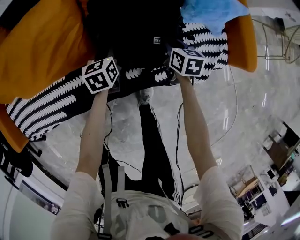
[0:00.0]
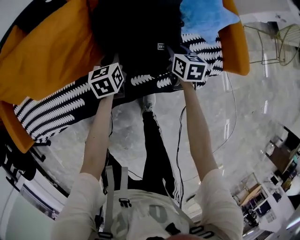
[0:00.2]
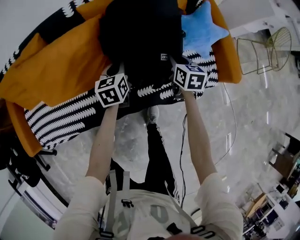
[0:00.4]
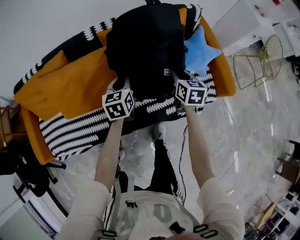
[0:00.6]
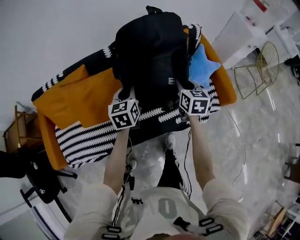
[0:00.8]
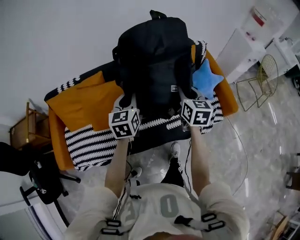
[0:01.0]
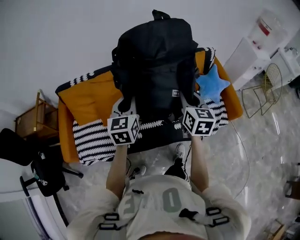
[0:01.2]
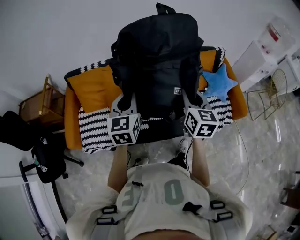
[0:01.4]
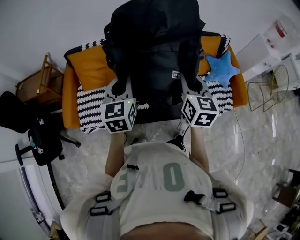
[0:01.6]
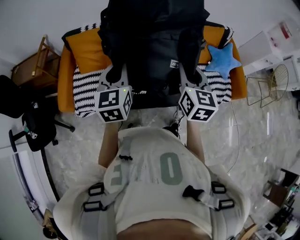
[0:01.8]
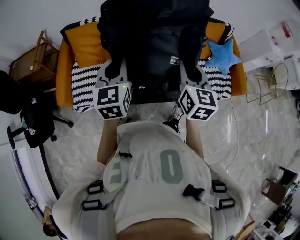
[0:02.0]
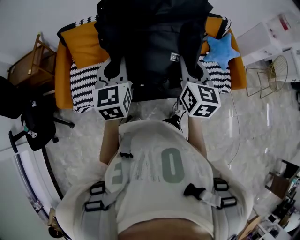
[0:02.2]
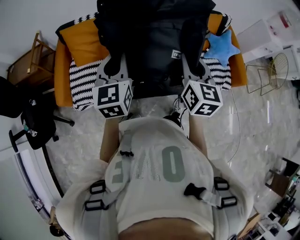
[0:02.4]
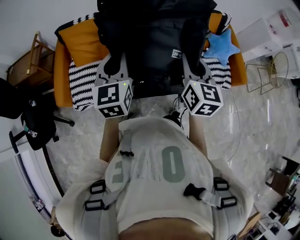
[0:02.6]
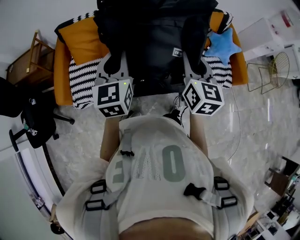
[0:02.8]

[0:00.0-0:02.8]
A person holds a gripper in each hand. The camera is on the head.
0:00.0 to 0:01.4: The left gripper is displaced upward by about 60 cm, and changes its angle by some 30 degrees, while the right gripper goes about 60 cm upward and to the left, and swivels some 30 degrees.
0:01.4 to 0:02.8: Both grippers travel together to the left and backward, some 15 cm.

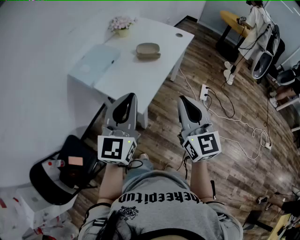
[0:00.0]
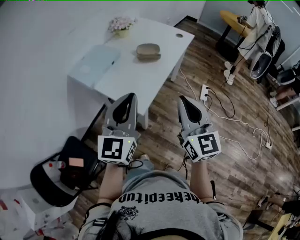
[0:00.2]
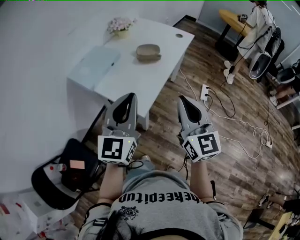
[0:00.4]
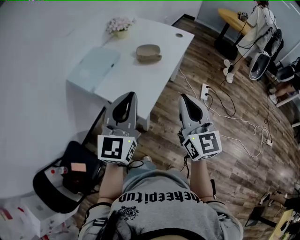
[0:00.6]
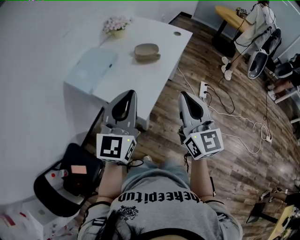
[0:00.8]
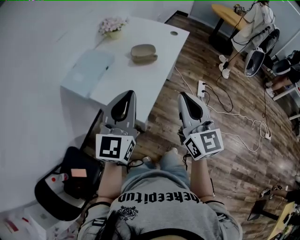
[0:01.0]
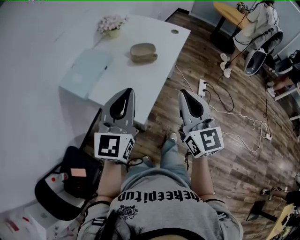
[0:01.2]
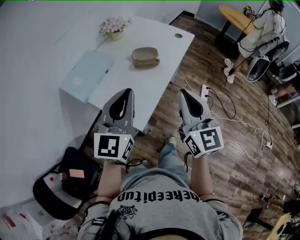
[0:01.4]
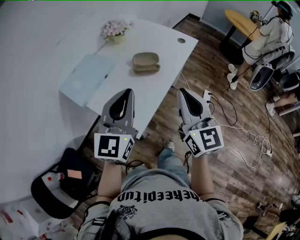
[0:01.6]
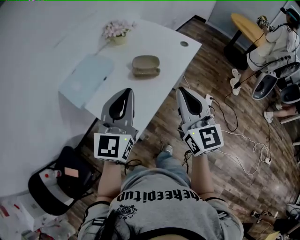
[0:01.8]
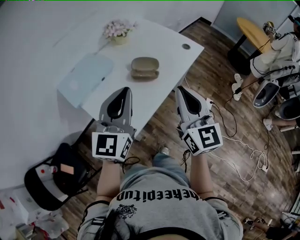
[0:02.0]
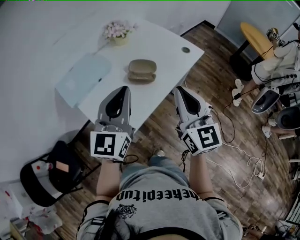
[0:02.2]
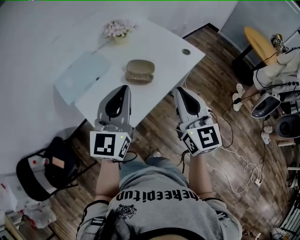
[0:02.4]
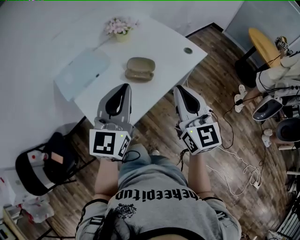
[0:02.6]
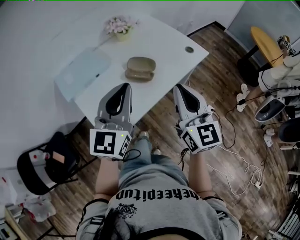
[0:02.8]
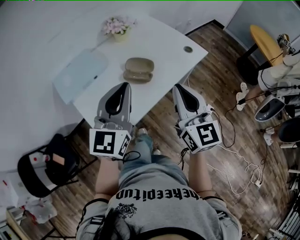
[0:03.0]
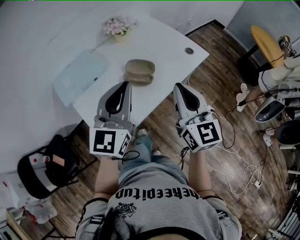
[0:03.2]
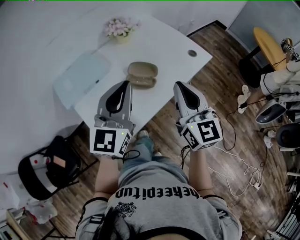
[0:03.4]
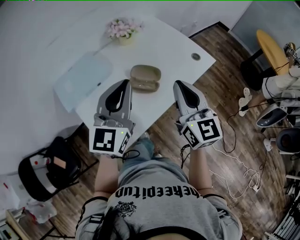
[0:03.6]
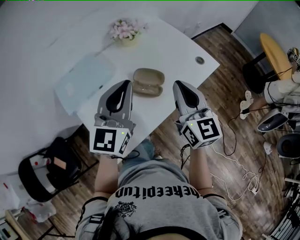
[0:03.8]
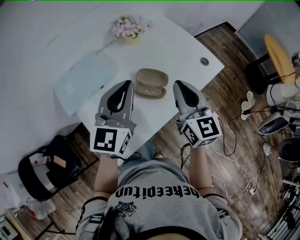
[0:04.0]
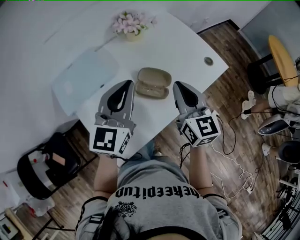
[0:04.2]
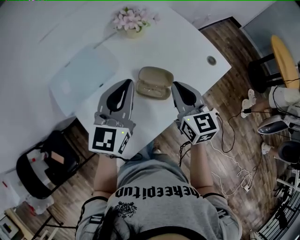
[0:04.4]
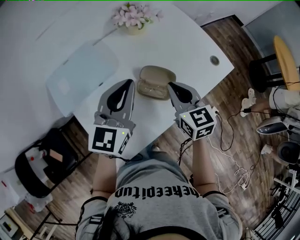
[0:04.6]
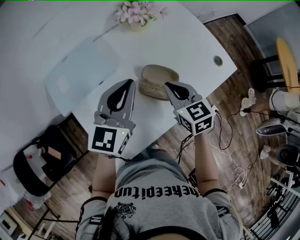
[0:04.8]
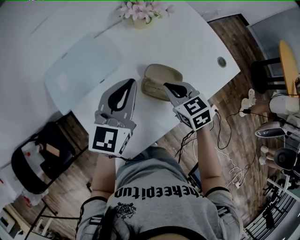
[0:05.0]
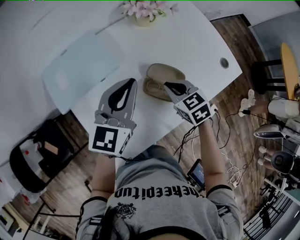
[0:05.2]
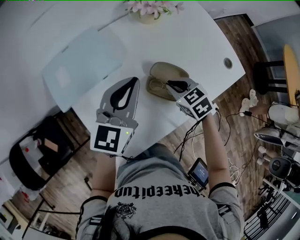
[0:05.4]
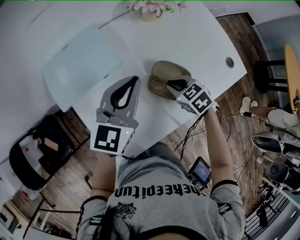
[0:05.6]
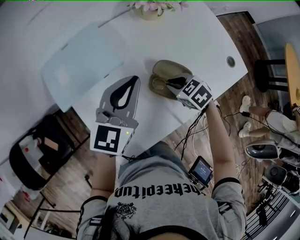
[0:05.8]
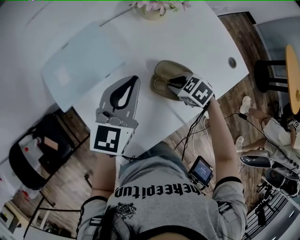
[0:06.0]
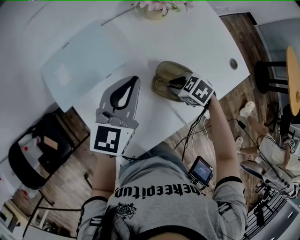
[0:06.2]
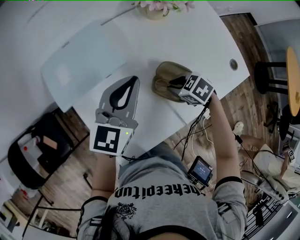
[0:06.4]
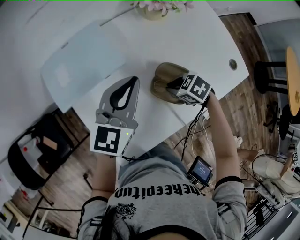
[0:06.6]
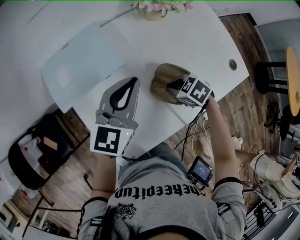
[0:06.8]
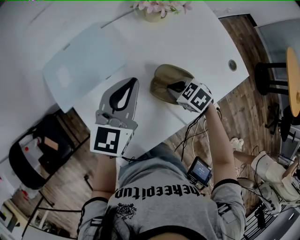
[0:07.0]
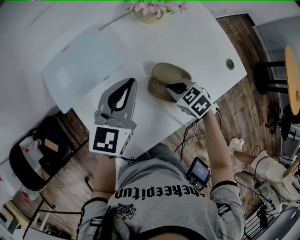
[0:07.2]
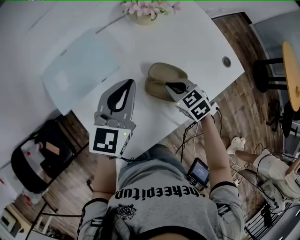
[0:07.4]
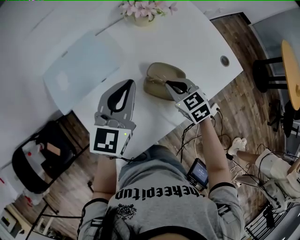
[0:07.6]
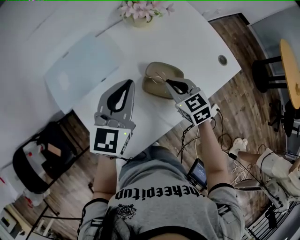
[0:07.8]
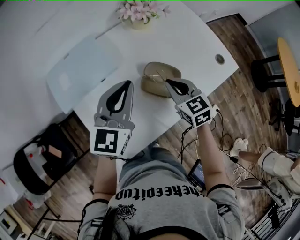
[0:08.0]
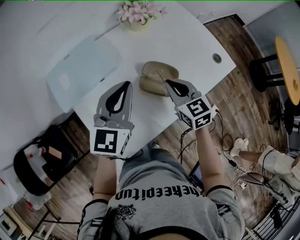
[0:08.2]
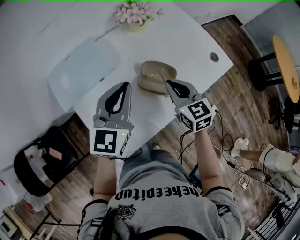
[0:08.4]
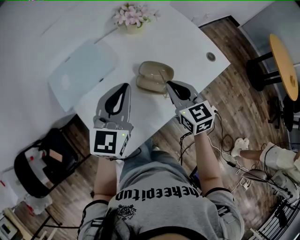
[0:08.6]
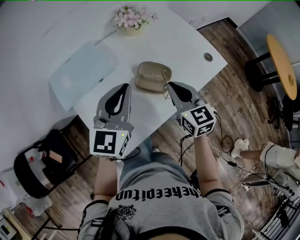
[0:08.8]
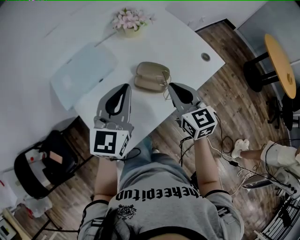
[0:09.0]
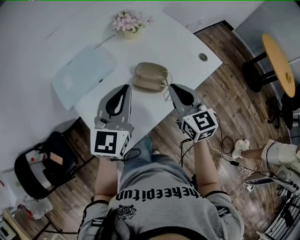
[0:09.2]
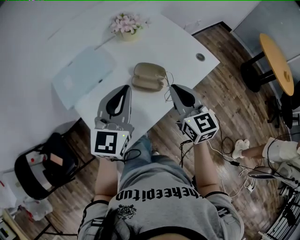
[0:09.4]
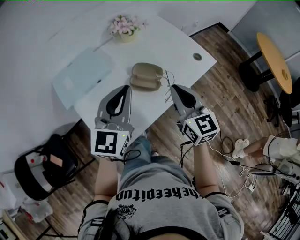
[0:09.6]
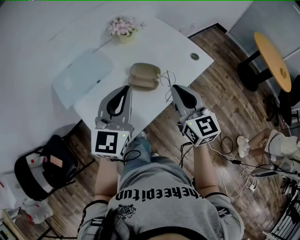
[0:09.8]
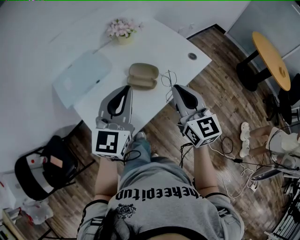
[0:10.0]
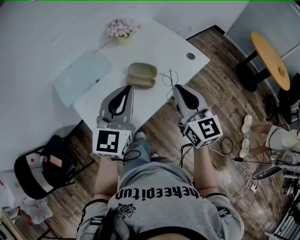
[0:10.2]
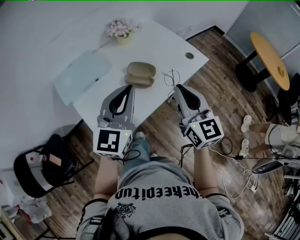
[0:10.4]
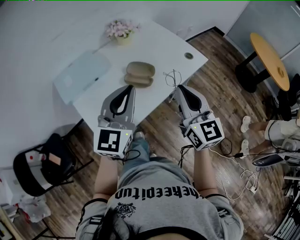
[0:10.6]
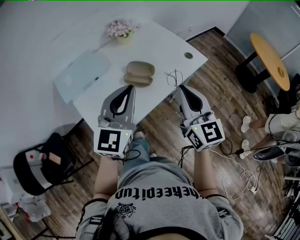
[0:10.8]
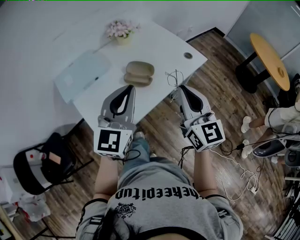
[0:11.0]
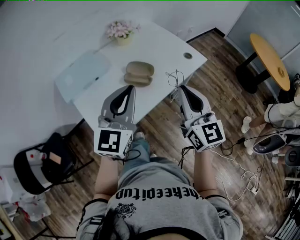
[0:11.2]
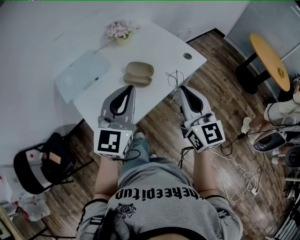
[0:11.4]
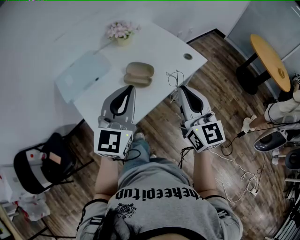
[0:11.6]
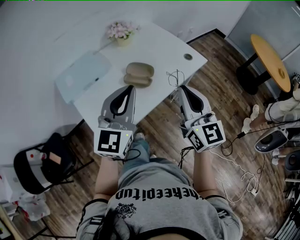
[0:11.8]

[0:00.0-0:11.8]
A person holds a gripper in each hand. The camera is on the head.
0:00.0 to 0:01.4: Both grippers move forward, some 10 cm.
0:01.4 to 0:03.0: The left gripper travels to the right and forward by about 15 cm; the right gripper moves forward and to the right, about 20 cm.
0:03.0 to 0:04.4: The right gripper is displaced forward and downward by about 20 cm. The left gripper is displaced forward by approximately 15 cm.
0:04.4 to 0:06.0: The right gripper is displaced downward by approximately 20 cm, and angles its fingers downward, by approximately 50 degrees. Meanwhile the left gripper goes some 5 cm downward.
0:06.0 to 0:07.4: The grippers stay close to where they were, moving slightly.
0:07.4 to 0:08.8: The left gripper travels backward and upward by about 10 cm. The right gripper heads upward and backward, covering about 15 cm, and tilts its fingers roughly 30 degrees upward.
0:08.8 to 0:10.4: The left gripper travels backward and to the right by roughly 15 cm, while the right gripper shifts roughly 20 cm backward, upward and to the right.
0:10.4 to 0:11.8: The grippers stay close to where they were, moving slightly.

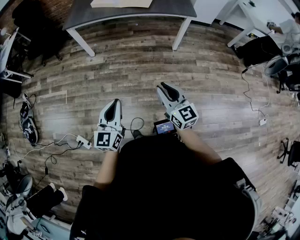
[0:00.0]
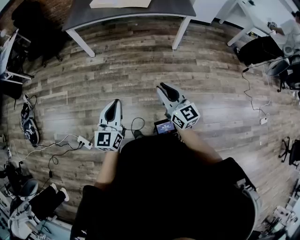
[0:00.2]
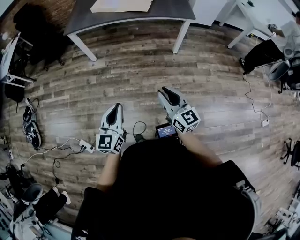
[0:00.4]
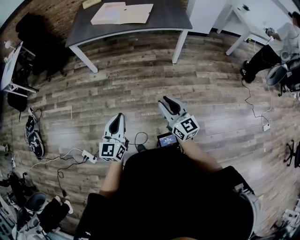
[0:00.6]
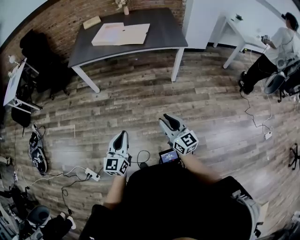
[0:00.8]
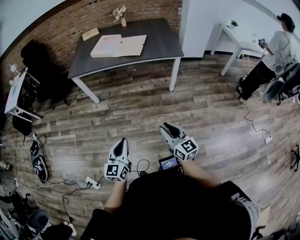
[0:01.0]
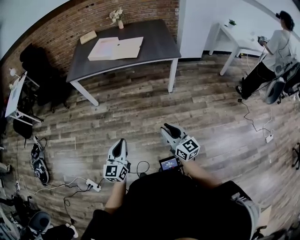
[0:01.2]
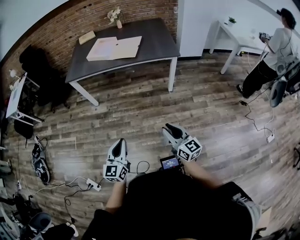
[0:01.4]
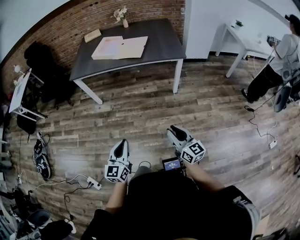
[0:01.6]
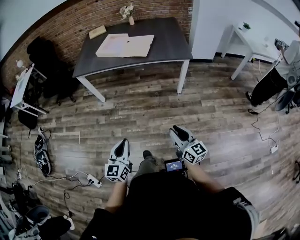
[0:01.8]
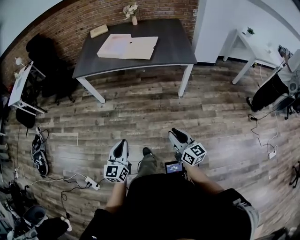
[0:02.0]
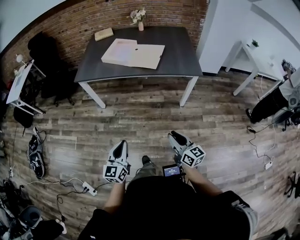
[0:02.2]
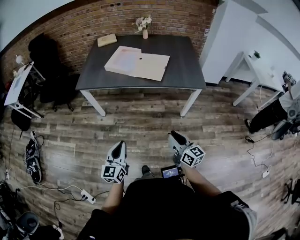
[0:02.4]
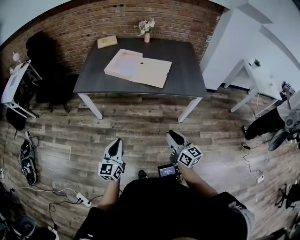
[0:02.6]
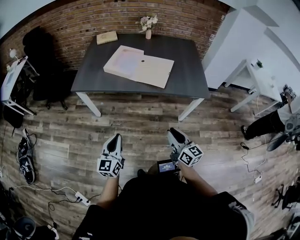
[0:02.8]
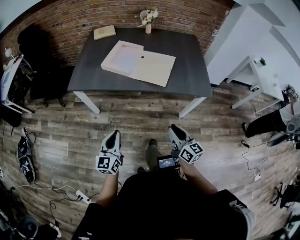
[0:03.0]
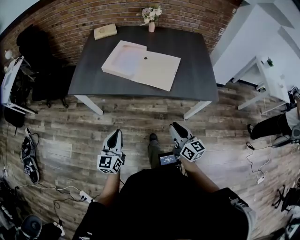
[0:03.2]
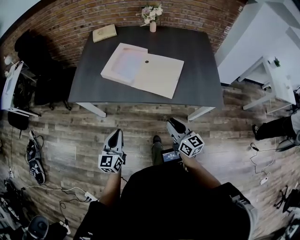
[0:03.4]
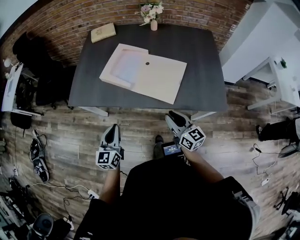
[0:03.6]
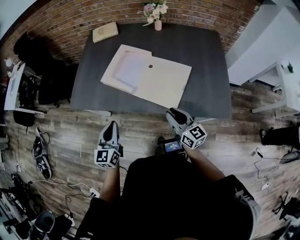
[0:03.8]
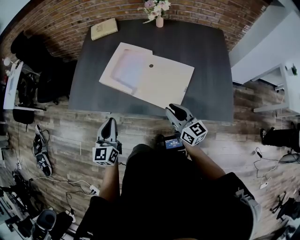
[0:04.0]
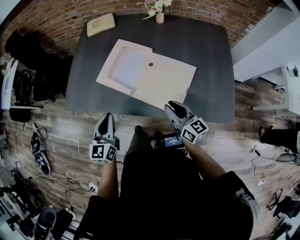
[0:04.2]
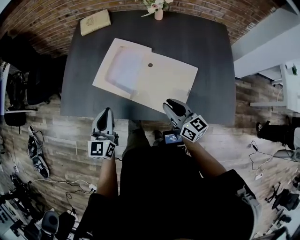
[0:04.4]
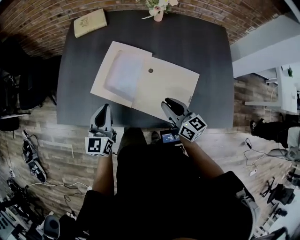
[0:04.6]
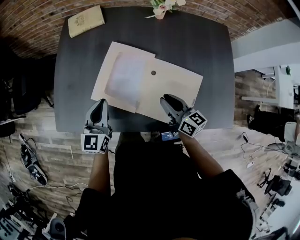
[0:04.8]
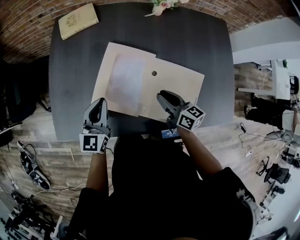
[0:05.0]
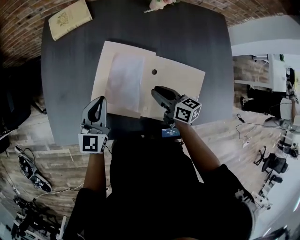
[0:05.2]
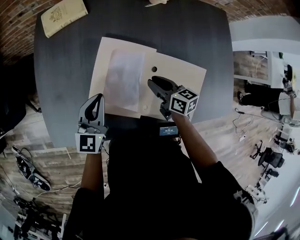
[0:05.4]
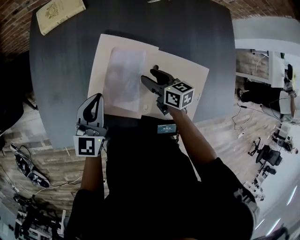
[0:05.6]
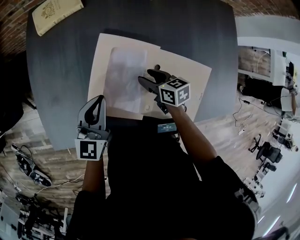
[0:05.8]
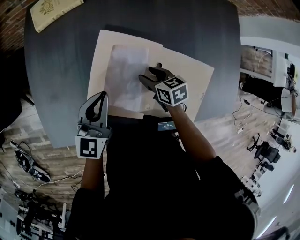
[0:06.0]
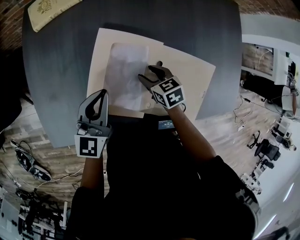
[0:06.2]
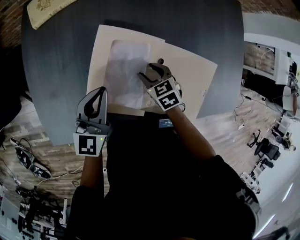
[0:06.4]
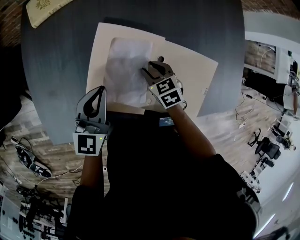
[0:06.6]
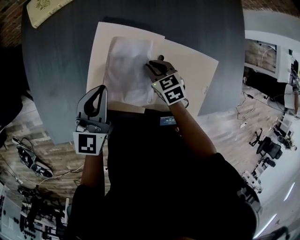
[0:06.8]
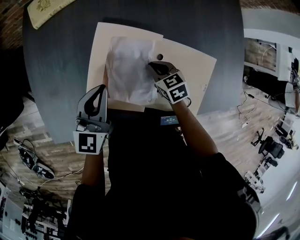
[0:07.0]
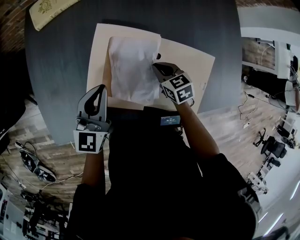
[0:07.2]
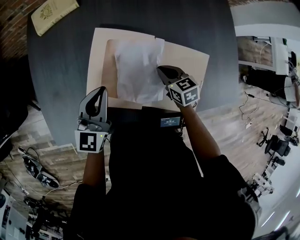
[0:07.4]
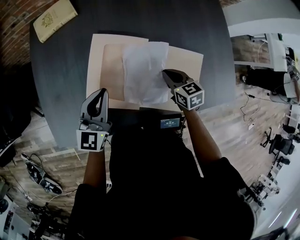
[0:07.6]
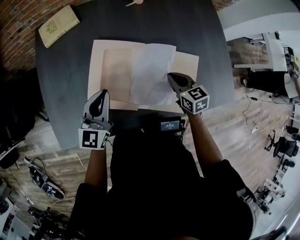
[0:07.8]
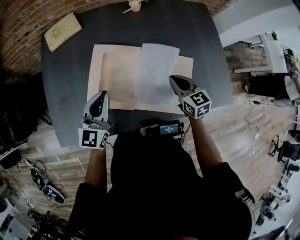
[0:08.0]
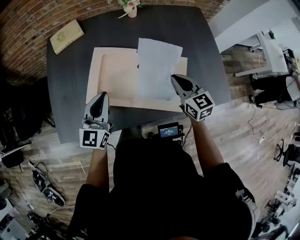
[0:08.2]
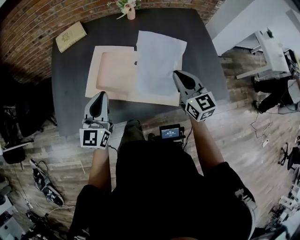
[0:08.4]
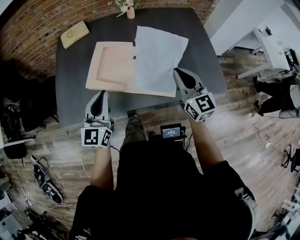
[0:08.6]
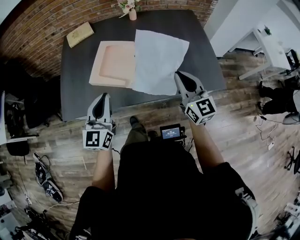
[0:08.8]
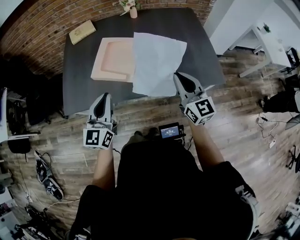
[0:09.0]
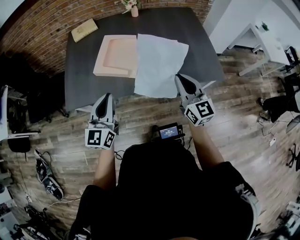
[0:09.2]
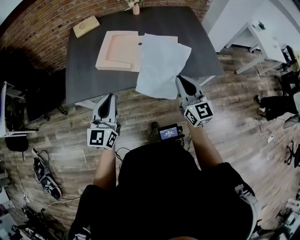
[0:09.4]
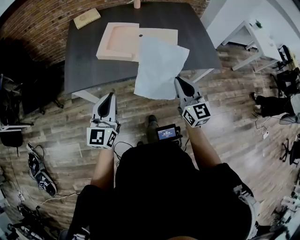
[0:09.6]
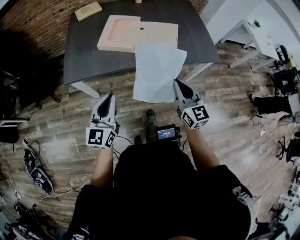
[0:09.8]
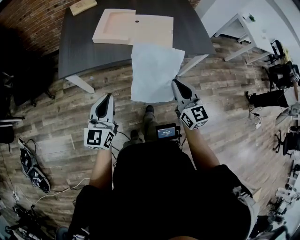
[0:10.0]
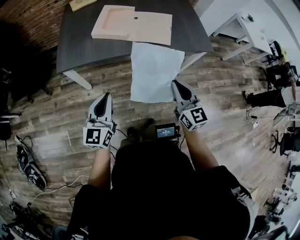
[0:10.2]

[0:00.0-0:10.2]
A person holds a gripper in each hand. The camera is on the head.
0:00.0 to 0:01.4: Both grippers move to the right, roughly 10 cm.
0:01.4 to 0:03.0: The pair of grippers is taken forward, some 40 cm.
0:03.0 to 0:04.4: The two grippers travel together, forward, some 40 cm.
0:04.4 to 0:05.8: The left gripper heads forward, covering approximately 25 cm, and changes its angle by some 20 degrees. The right gripper moves forward and downward, about 30 cm, angles its fingers downward, by about 30 degrees, and opens up.
0:05.8 to 0:07.2: The right gripper changes its angle by about 20 degrees, and closes its fingers.
0:07.2 to 0:08.8: The left gripper is displaced backward and upward by approximately 35 cm; the right gripper moves upward, backward and to the right, some 50 cm, and tilts its fingers approximately 50 degrees upward.
0:08.8 to 0:10.2: Both grippers travel together backward, about 30 cm.
